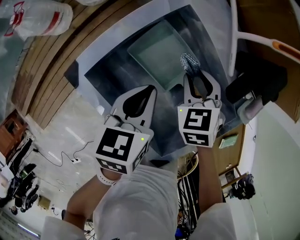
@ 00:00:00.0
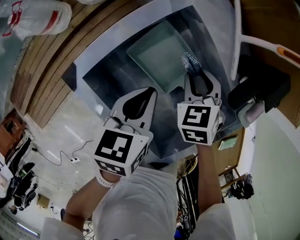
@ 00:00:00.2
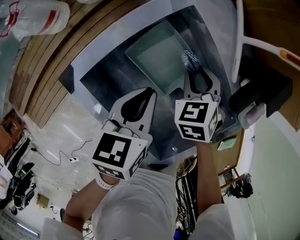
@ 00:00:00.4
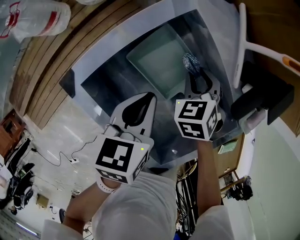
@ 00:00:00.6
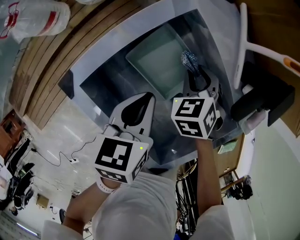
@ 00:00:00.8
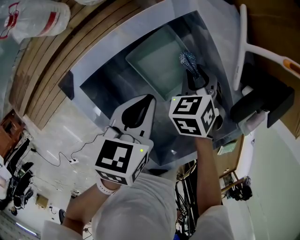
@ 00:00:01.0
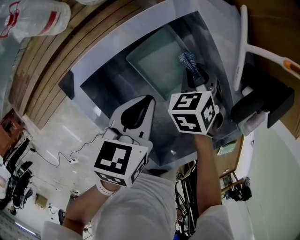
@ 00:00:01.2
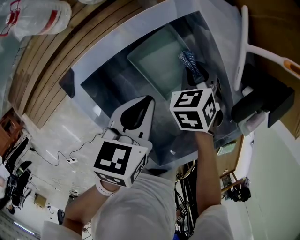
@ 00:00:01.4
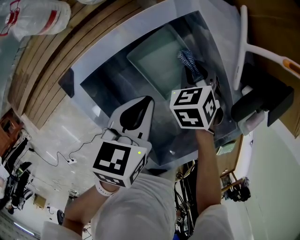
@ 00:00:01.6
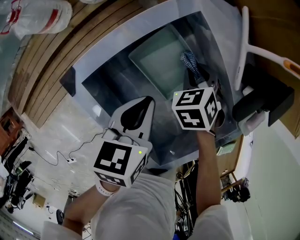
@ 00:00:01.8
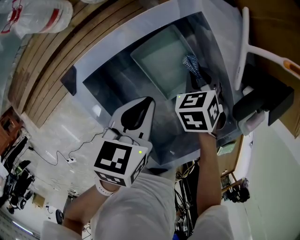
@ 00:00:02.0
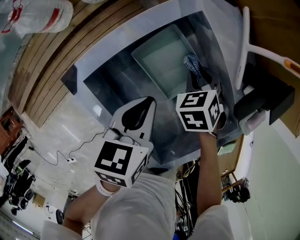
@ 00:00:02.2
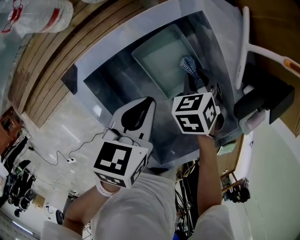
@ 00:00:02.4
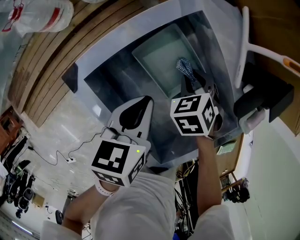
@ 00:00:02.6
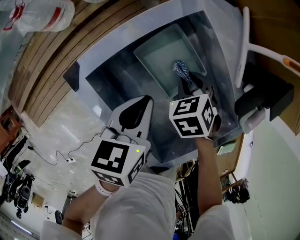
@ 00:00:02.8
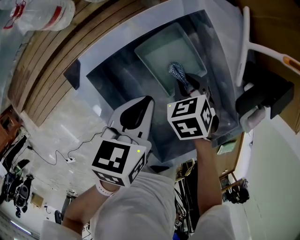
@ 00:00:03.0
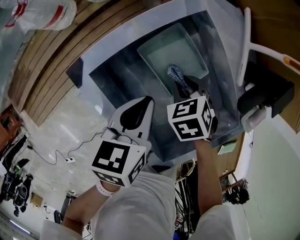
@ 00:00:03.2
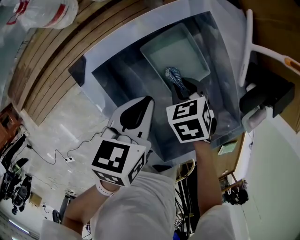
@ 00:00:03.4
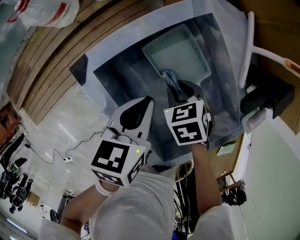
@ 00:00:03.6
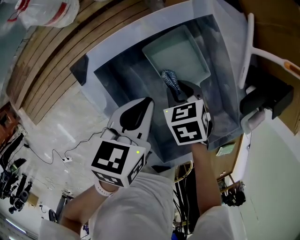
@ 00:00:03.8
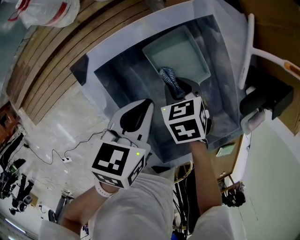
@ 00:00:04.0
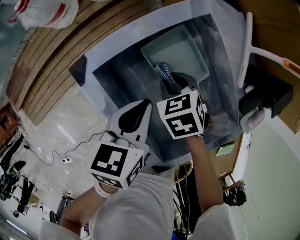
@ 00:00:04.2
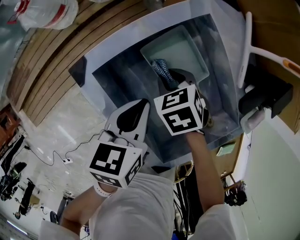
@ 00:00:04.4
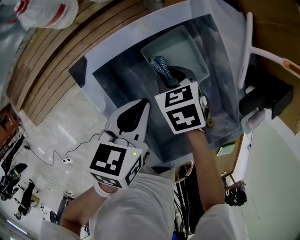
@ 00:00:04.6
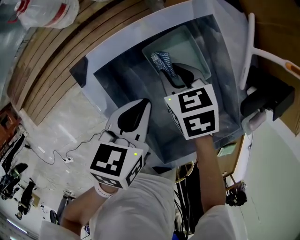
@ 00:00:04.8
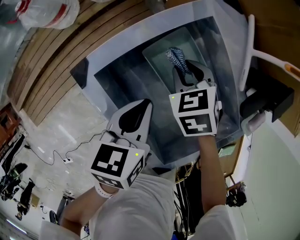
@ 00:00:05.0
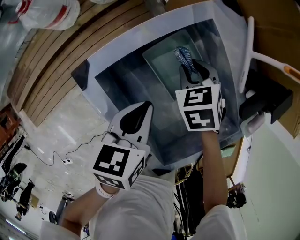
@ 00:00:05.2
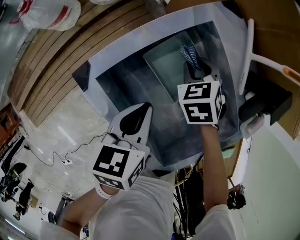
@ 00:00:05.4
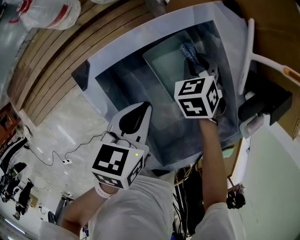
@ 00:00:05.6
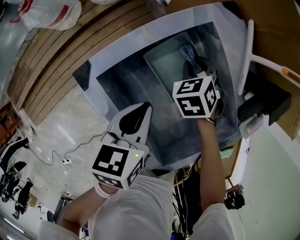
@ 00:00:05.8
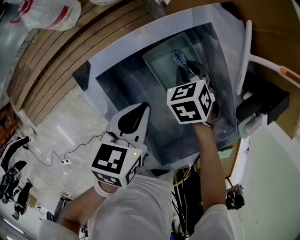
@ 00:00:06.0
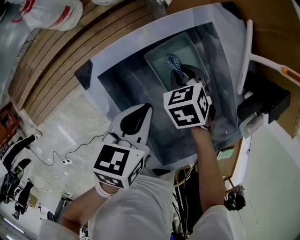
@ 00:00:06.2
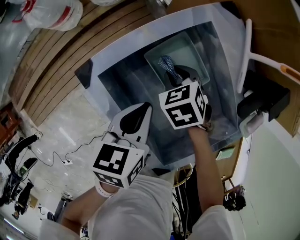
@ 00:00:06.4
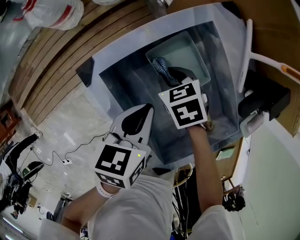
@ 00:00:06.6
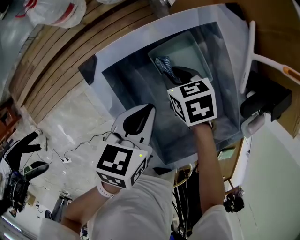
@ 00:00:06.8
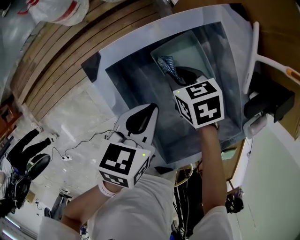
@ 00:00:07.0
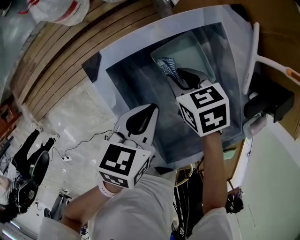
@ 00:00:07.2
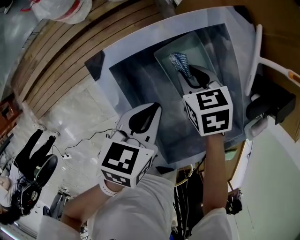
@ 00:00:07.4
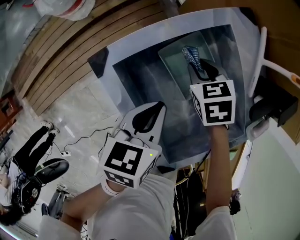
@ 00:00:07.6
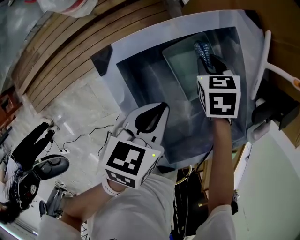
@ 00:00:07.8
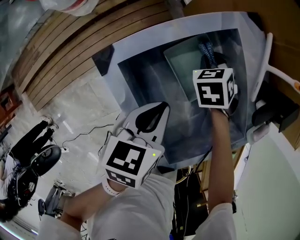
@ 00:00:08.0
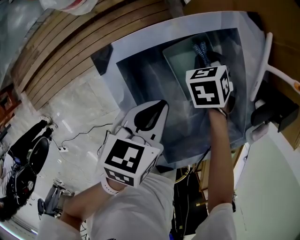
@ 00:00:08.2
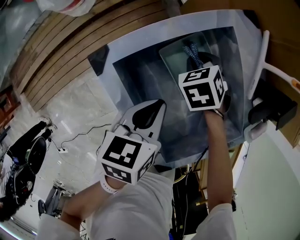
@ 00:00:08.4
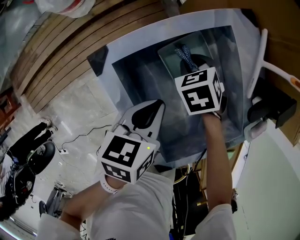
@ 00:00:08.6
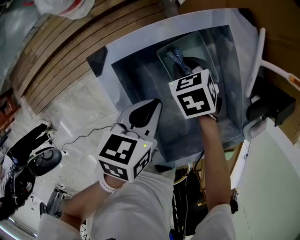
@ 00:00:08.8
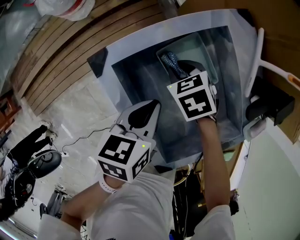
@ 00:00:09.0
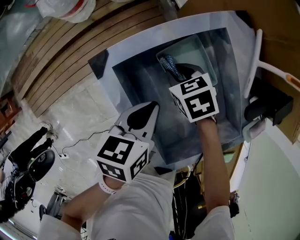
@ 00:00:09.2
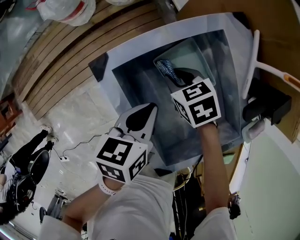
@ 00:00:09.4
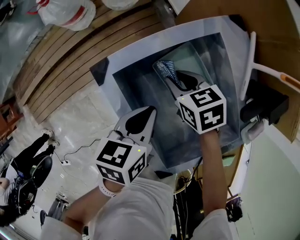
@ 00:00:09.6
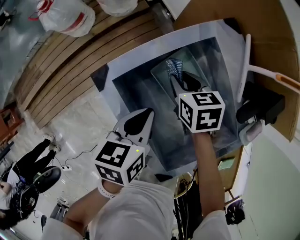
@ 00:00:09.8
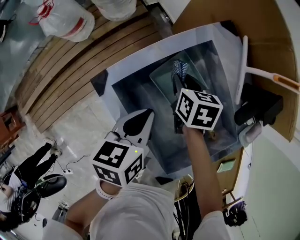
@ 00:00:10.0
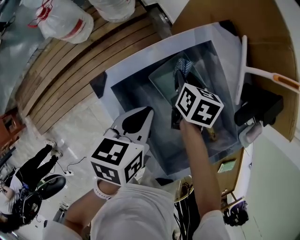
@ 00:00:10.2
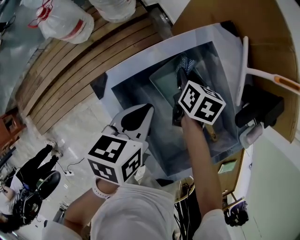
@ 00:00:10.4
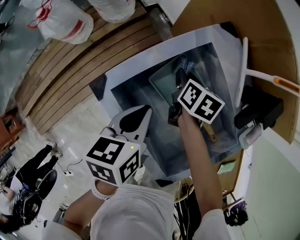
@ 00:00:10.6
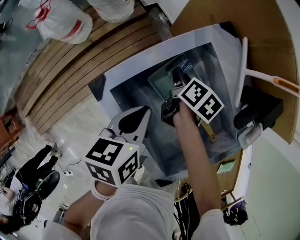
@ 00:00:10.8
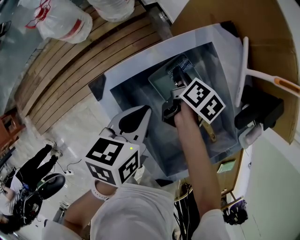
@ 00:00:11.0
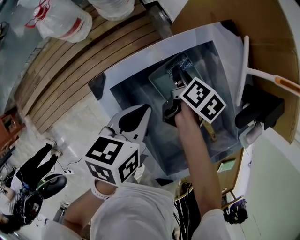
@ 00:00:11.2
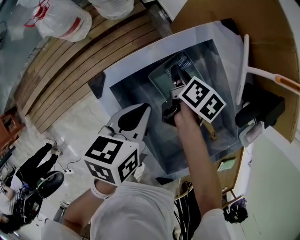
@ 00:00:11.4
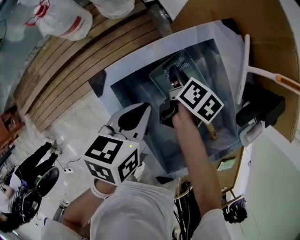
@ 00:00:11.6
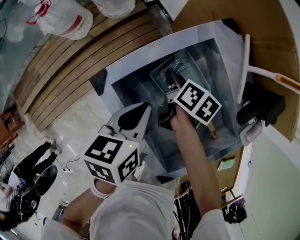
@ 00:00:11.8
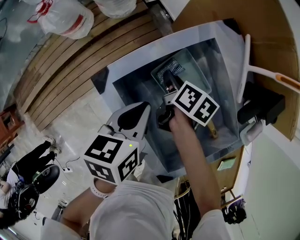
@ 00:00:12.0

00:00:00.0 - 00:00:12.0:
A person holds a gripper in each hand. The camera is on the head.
00:00:00.0 - 00:00:01.6: The right gripper heads downward, covering some 5 cm.
00:00:01.6 - 00:00:03.0: The right gripper shifts by roughly 5 cm.
00:00:03.0 - 00:00:04.4: The right gripper moves some 5 cm.
00:00:04.4 - 00:00:06.0: The right gripper ends up approximately 5 cm from where it was.
00:00:07.6 - 00:00:09.0: The right gripper shifts by some 5 cm.
00:00:09.0 - 00:00:10.4: The right gripper moves approximately 10 cm, and rotates around the line of its fingers by roughly 50 degrees, clockwise from behind; the left gripper moves some 5 cm.
00:00:10.4 - 00:00:12.0: The right gripper moves roughly 5 cm, and turns by approximately 20 degrees.

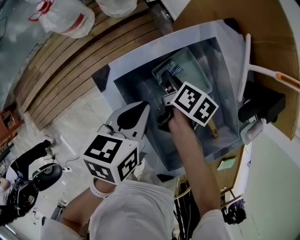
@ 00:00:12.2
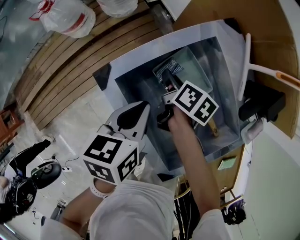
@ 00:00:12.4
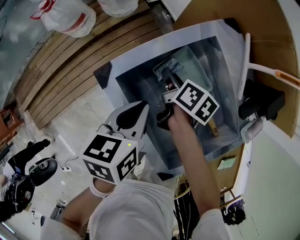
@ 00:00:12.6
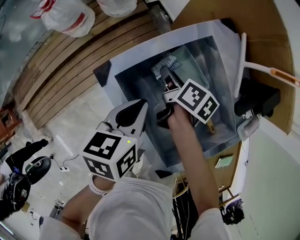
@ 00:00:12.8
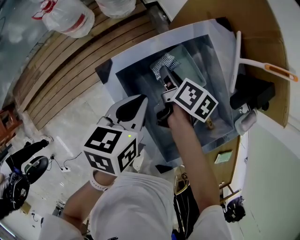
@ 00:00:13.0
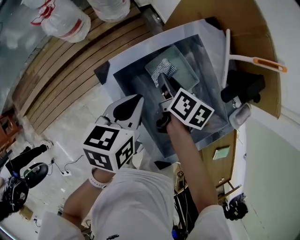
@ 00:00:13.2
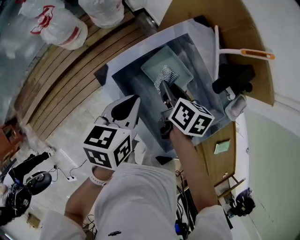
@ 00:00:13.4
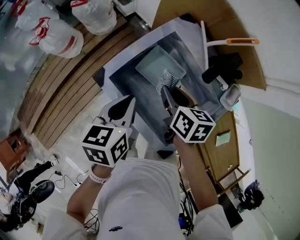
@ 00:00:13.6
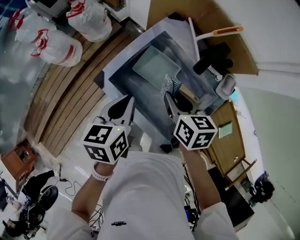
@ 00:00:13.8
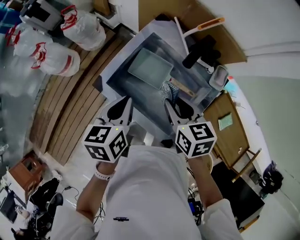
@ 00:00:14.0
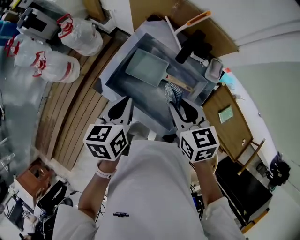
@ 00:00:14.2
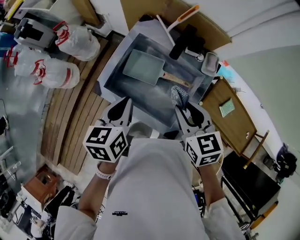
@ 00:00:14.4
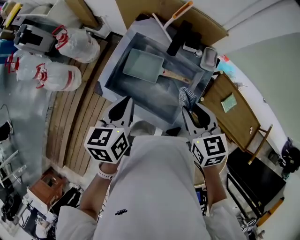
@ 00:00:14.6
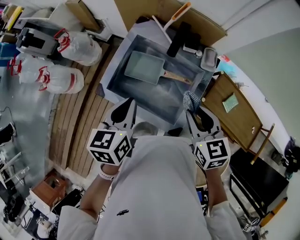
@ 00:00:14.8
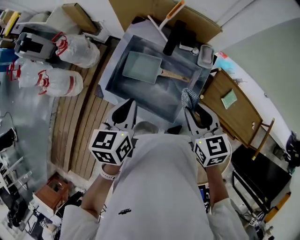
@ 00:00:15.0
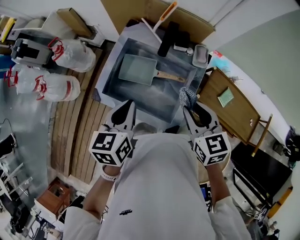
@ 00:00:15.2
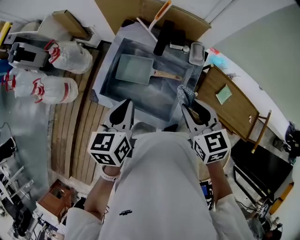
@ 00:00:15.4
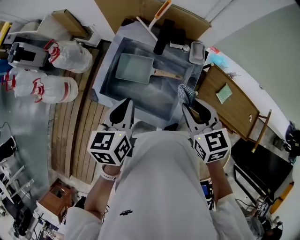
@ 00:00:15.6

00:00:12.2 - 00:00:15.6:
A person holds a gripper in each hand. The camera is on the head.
00:00:12.2 - 00:00:13.8: The left gripper goes some 10 cm upward, while the right gripper heads upward and backward, covering some 25 cm, and swivels roughly 30 degrees.
00:00:13.8 - 00:00:15.6: The right gripper moves to the right, upward and backward, roughly 20 cm, and changes its angle by about 20 degrees. The left gripper heads upward and to the right, covering some 10 cm.

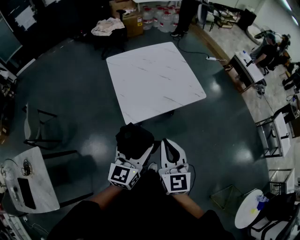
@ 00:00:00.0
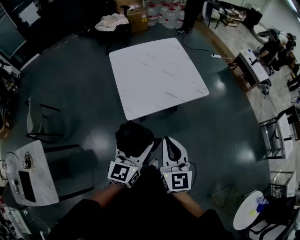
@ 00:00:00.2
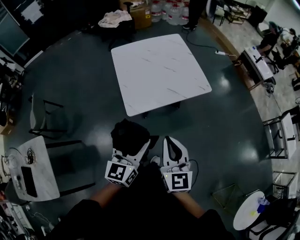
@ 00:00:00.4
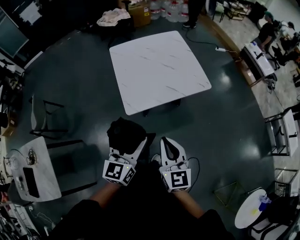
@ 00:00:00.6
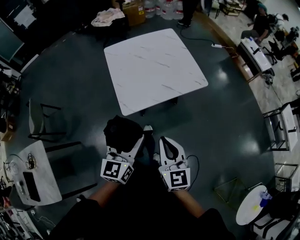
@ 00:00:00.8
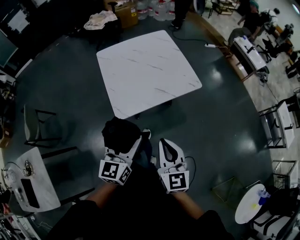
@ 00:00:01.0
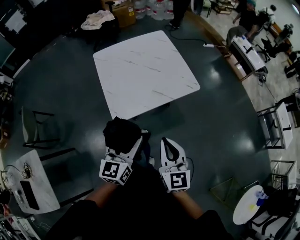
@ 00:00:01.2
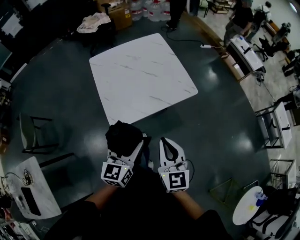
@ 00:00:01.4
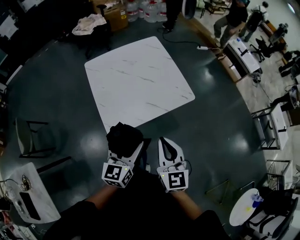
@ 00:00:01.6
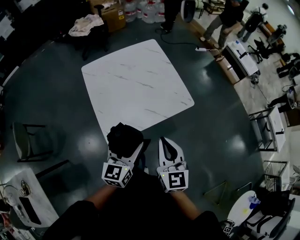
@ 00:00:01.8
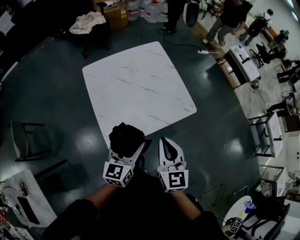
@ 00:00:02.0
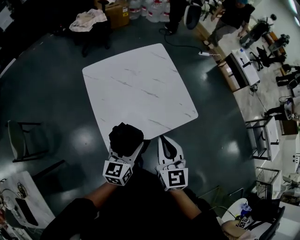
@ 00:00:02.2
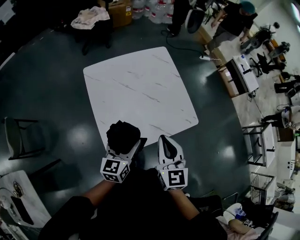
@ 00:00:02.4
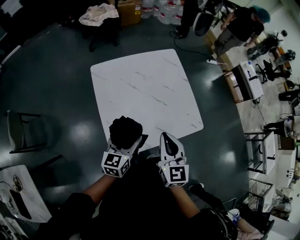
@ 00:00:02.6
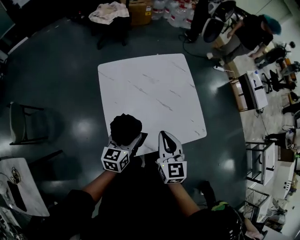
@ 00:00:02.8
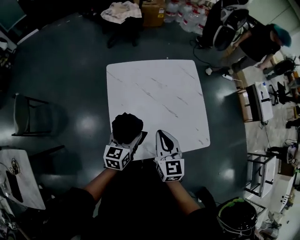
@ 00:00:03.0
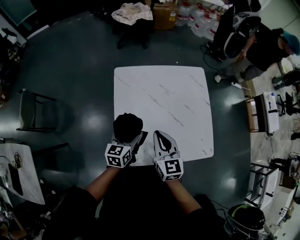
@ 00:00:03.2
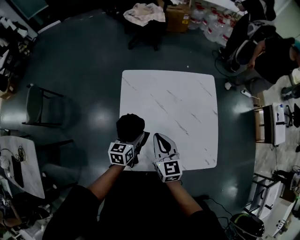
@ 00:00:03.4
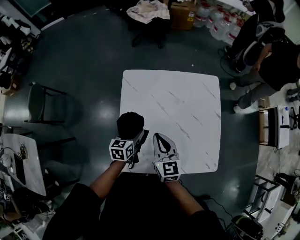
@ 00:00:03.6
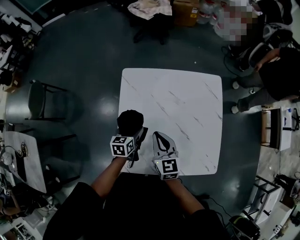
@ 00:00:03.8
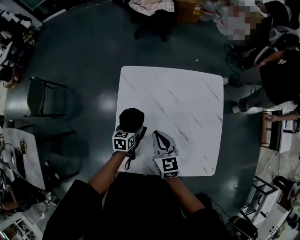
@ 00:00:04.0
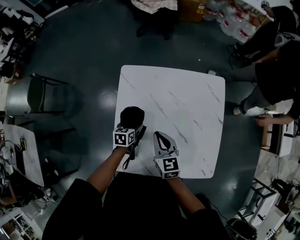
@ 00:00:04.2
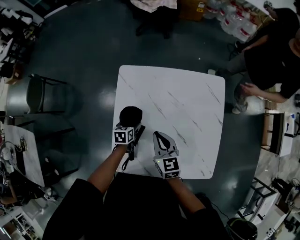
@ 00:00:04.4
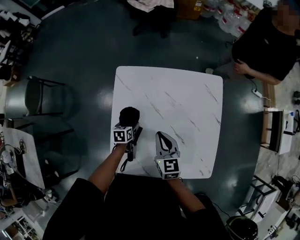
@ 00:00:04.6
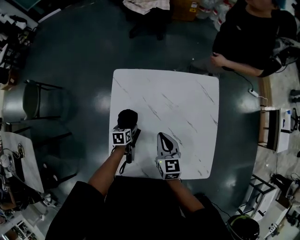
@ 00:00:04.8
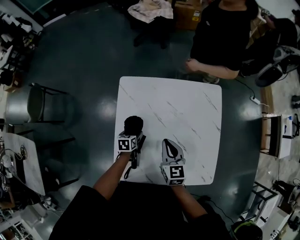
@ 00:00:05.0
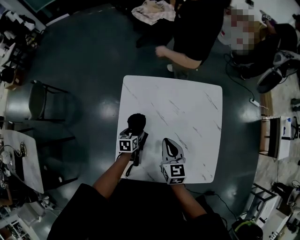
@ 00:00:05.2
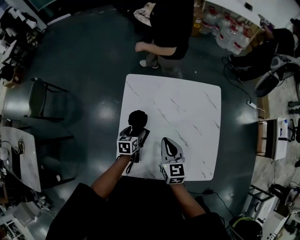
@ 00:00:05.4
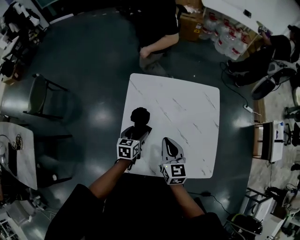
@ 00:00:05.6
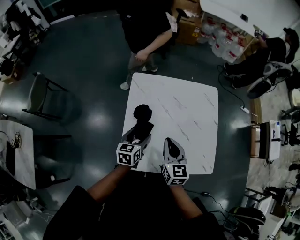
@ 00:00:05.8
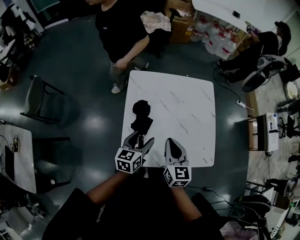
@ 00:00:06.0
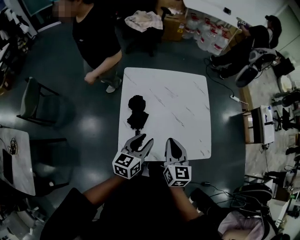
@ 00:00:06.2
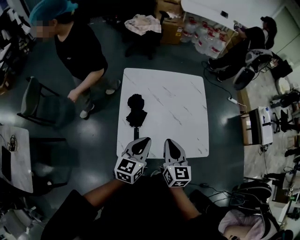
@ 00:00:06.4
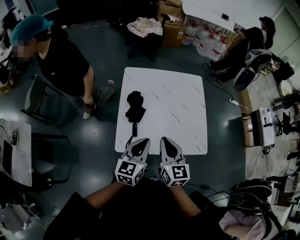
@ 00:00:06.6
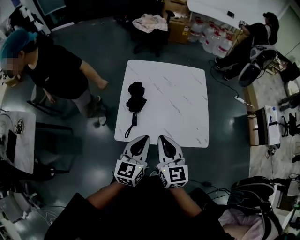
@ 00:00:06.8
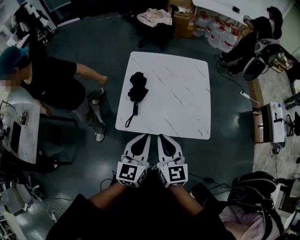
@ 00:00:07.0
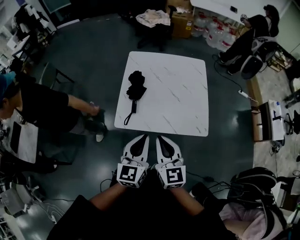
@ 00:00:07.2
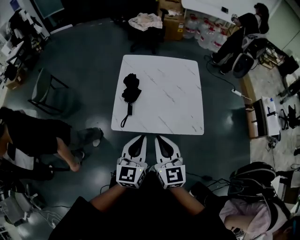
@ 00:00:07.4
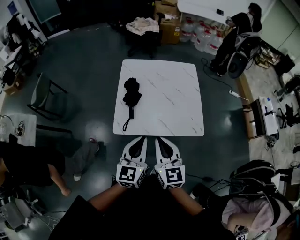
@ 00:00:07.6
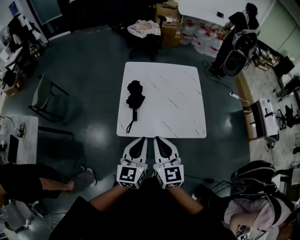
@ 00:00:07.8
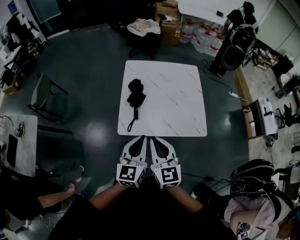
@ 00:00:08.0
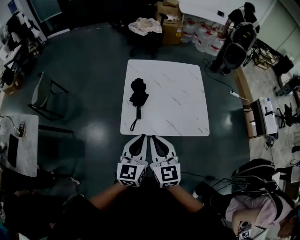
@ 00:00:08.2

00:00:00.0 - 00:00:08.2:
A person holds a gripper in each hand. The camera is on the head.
00:00:00.0 - 00:00:01.6: The two grippers go roughly 15 cm forward and to the right.
00:00:01.6 - 00:00:03.2: The left gripper goes approximately 35 cm forward, to the left and downward, and rotates roughly 20 degrees, while the right gripper is displaced forward and to the left by roughly 35 cm, and rotates approximately 30 degrees.
00:00:03.2 - 00:00:05.0: The left gripper heads downward and forward, covering about 25 cm, and rotates roughly 30 degrees; the right gripper travels forward, downward and to the right by some 15 cm.
00:00:05.0 - 00:00:06.6: The left gripper goes approximately 40 cm upward and backward, tilts its fingers roughly 40 degrees upward, and closes. The right gripper shifts about 30 cm backward and upward.
00:00:06.6 - 00:00:08.2: The right gripper moves backward and to the left, roughly 15 cm, while the left gripper goes roughly 15 cm backward.
